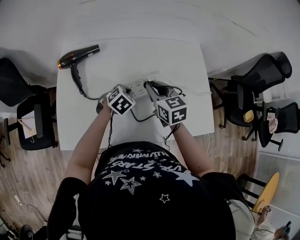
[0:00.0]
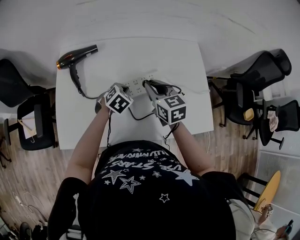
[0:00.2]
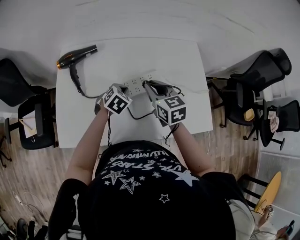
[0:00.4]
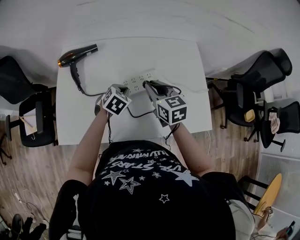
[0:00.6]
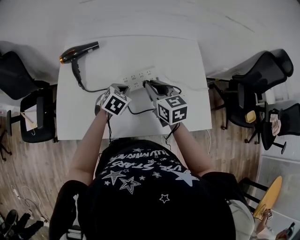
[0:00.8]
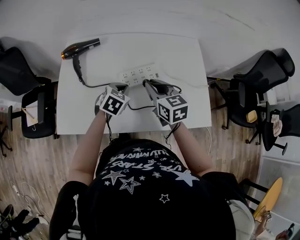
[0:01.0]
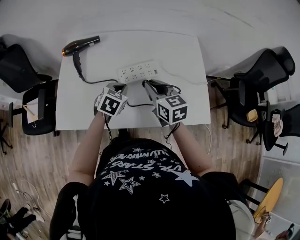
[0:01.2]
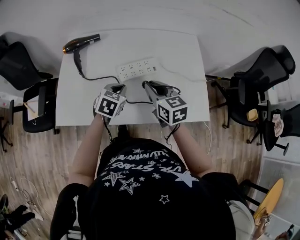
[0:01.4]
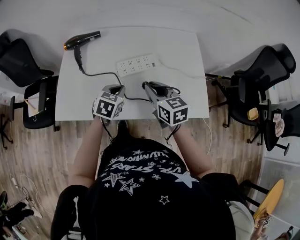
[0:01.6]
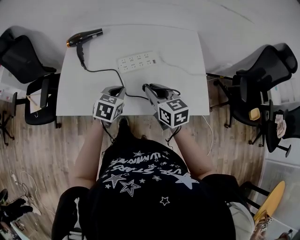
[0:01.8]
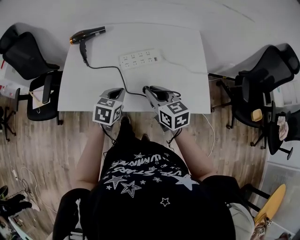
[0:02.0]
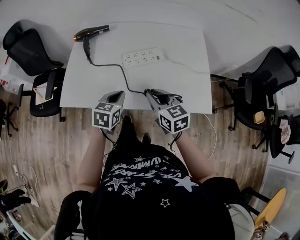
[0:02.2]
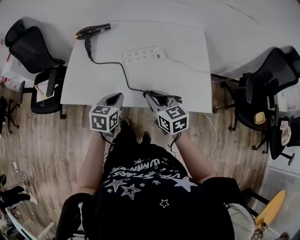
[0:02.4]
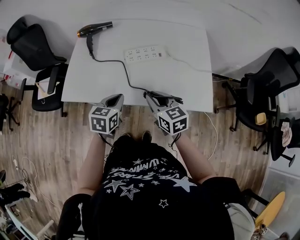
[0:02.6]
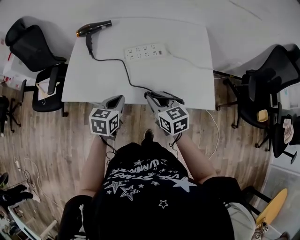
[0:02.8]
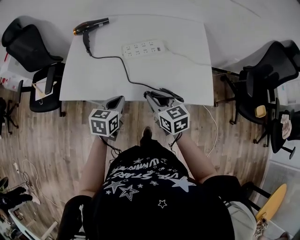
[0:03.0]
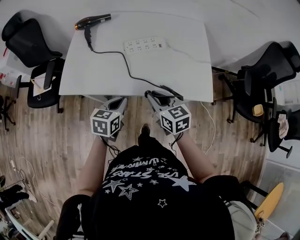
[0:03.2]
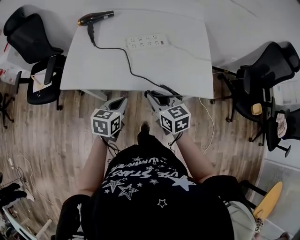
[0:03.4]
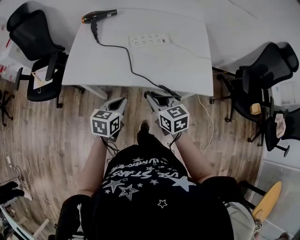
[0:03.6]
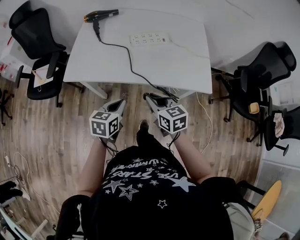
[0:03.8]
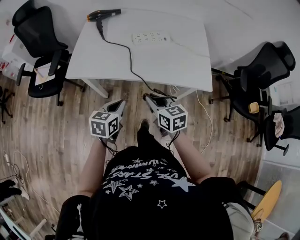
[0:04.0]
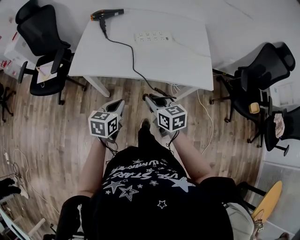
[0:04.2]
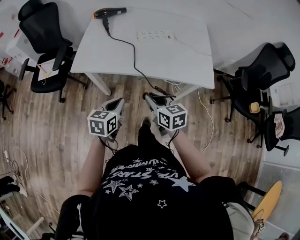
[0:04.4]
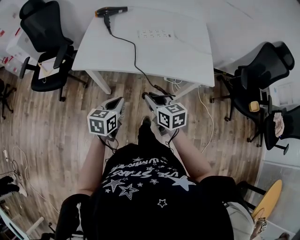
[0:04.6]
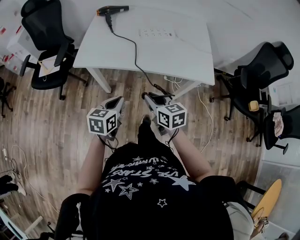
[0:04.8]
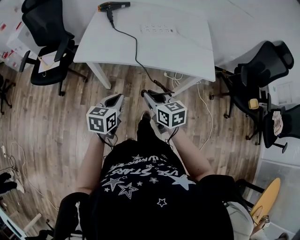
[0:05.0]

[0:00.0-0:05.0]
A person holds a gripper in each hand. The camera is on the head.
0:00.0 to 0:01.6: The left gripper goes roughly 15 cm backward and upward, and rotates approximately 30 degrees, while the right gripper shifts roughly 15 cm backward and to the right.
0:01.6 to 0:03.4: Both grippers move backward, about 20 cm. The left gripper turns by some 20 degrees.
0:03.4 to 0:05.0: The grippers both shift backward and to the left by about 15 cm.

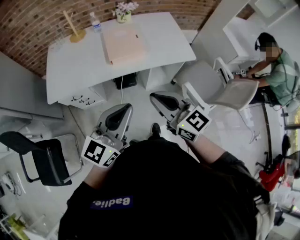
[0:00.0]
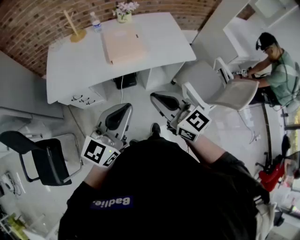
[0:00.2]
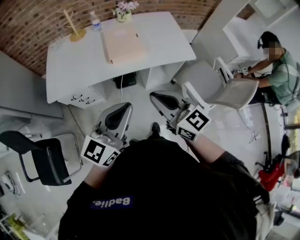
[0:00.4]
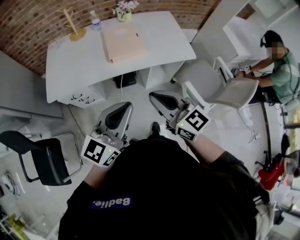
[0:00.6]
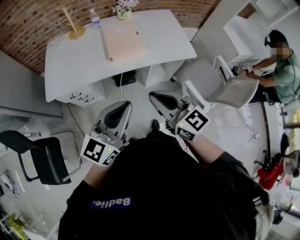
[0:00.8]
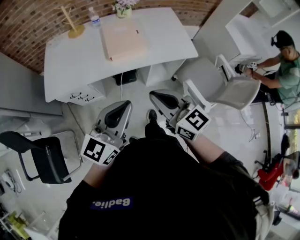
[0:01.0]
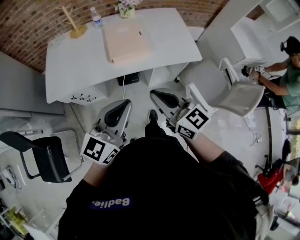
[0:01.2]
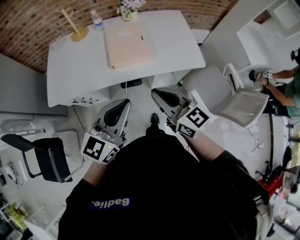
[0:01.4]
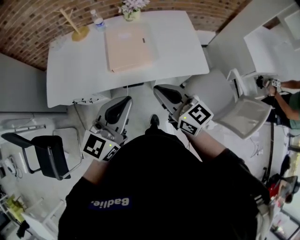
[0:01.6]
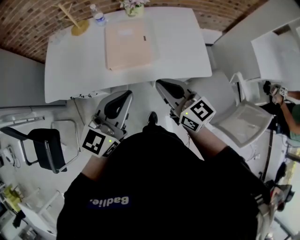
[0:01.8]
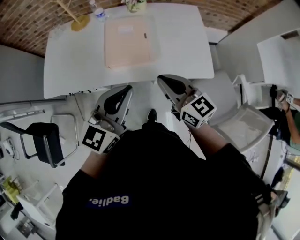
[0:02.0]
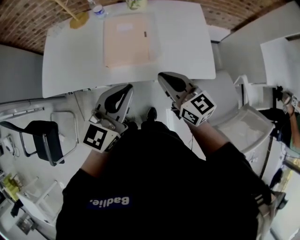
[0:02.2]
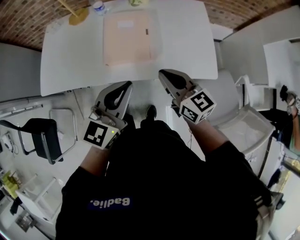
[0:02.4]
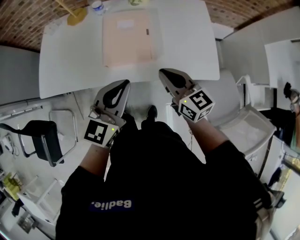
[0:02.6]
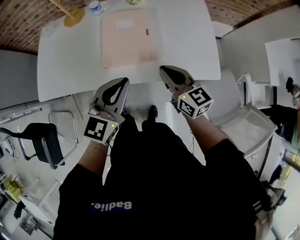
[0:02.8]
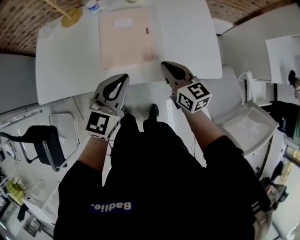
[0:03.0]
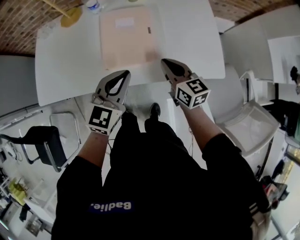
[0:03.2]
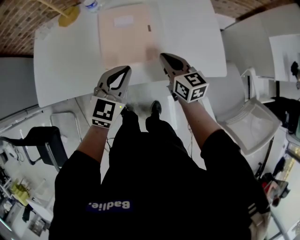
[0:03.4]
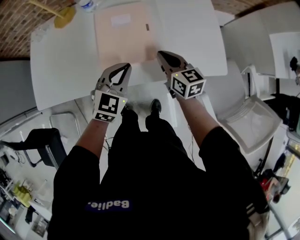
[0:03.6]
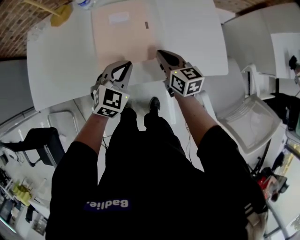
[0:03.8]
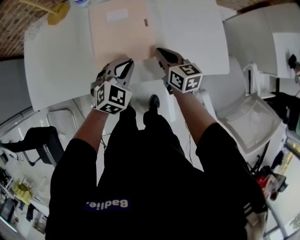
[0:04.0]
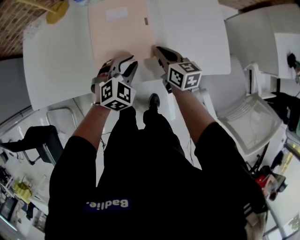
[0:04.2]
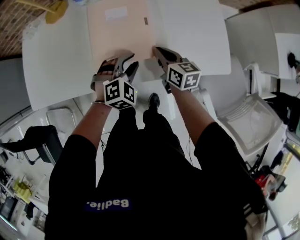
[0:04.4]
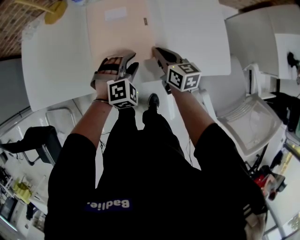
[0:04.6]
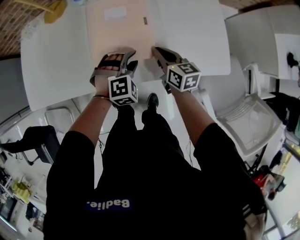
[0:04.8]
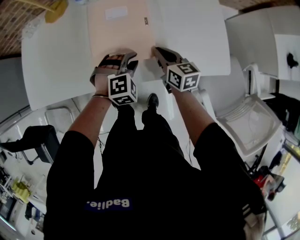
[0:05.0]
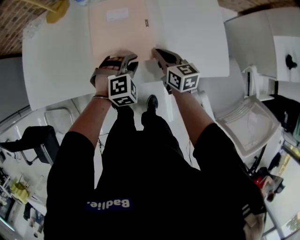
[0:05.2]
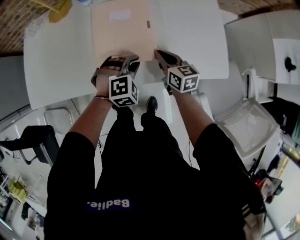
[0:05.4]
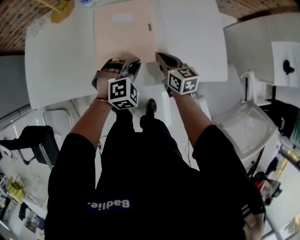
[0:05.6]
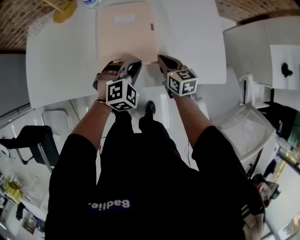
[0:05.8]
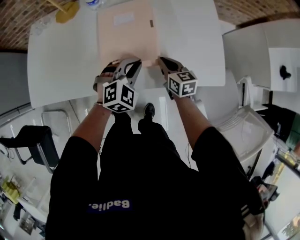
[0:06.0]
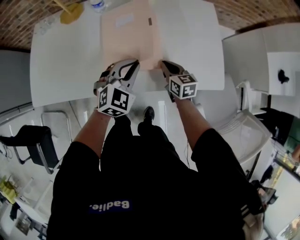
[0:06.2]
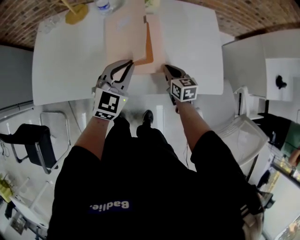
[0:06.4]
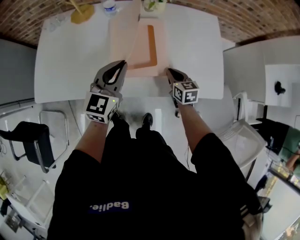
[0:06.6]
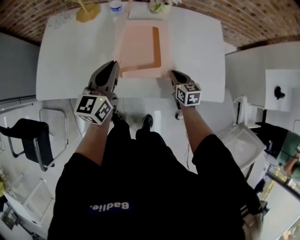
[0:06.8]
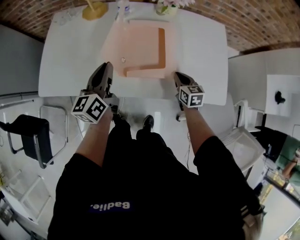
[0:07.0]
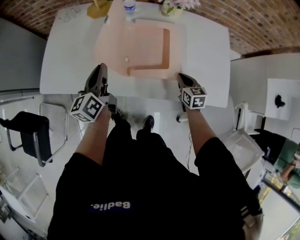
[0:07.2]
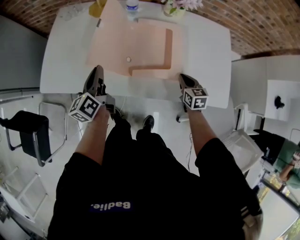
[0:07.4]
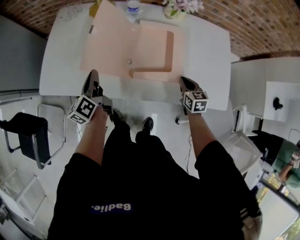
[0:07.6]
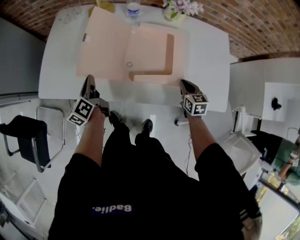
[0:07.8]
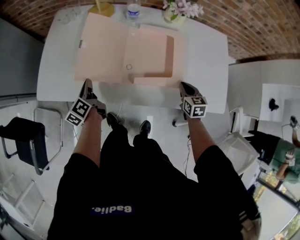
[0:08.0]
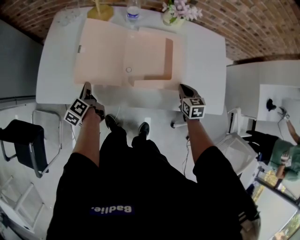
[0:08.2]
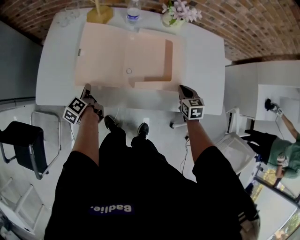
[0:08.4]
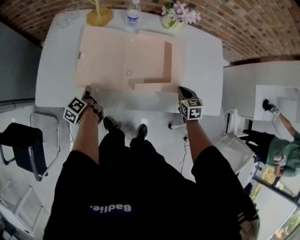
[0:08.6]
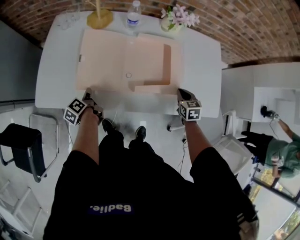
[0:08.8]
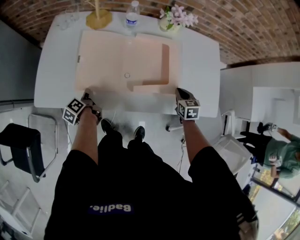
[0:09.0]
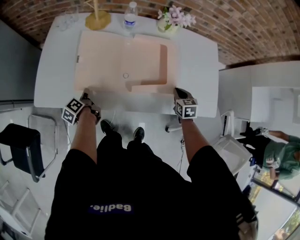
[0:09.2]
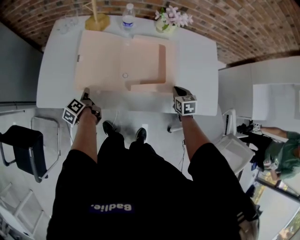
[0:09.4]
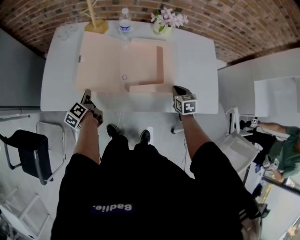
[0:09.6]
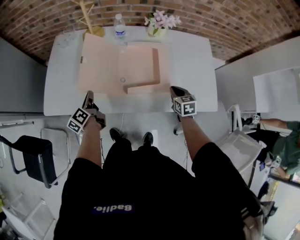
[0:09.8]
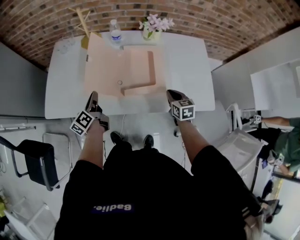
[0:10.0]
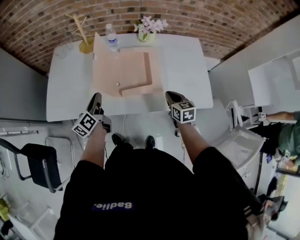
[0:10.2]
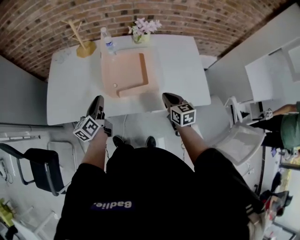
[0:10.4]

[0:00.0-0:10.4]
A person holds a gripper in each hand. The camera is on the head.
0:00.0 to 0:01.4: The two grippers go roughly 10 cm forward.
0:01.4 to 0:03.0: The right gripper heads forward, downward and to the right, covering roughly 30 cm. Meanwhile the left gripper goes approximately 25 cm forward and downward, and turns by about 20 degrees.
0:03.0 to 0:04.4: The left gripper shifts some 20 cm downward, tilts its fingers roughly 30 degrees downward, and opens its fingers, while the right gripper goes roughly 15 cm downward and forward.
0:04.4 to 0:06.0: The left gripper is displaced upward by about 5 cm, and closes its fingers.
0:06.0 to 0:07.4: The left gripper moves to the left, about 30 cm, and rolls counterclockwise, seen from behind, by approximately 80 degrees.
0:07.4 to 0:09.0: The left gripper goes about 20 cm downward and to the left, and turns by some 40 degrees.
0:09.0 to 0:10.4: The left gripper heads upward and to the right, covering some 25 cm, and changes its angle by about 40 degrees. Meanwhile the right gripper travels upward and backward by roughly 15 cm, and changes its angle by about 20 degrees.

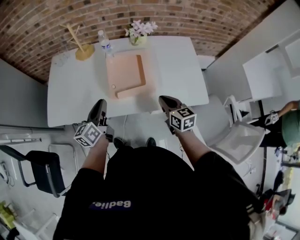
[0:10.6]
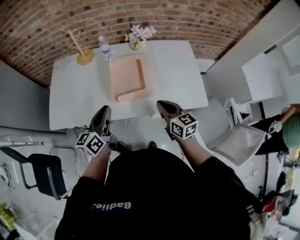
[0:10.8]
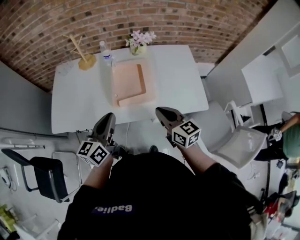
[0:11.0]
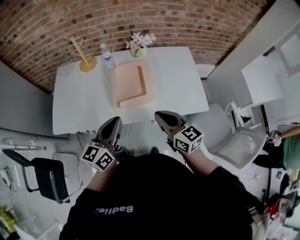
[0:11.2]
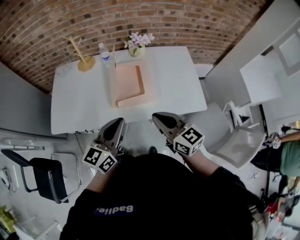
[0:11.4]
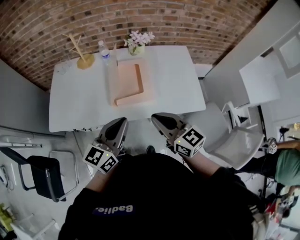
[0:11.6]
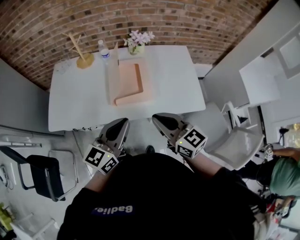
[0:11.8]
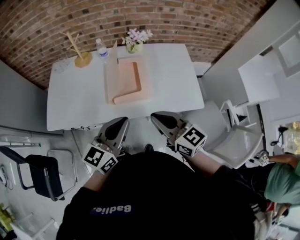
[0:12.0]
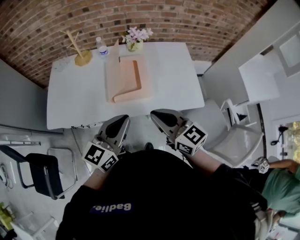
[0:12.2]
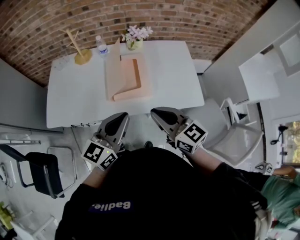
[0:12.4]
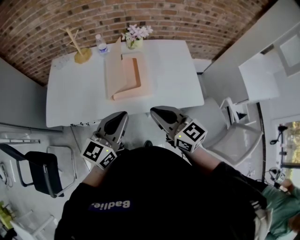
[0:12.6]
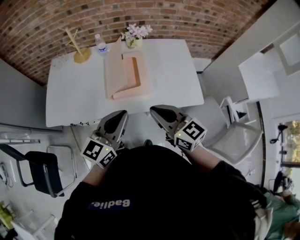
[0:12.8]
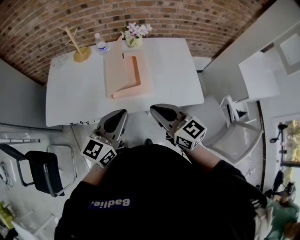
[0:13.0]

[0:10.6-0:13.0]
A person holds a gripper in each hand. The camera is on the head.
0:10.6 to 0:11.8: The right gripper shifts approximately 20 cm upward and backward, and turns by some 20 degrees; the left gripper is displaced upward, to the right and backward by about 20 cm, and swivels about 30 degrees.
0:11.8 to 0:13.0: Both grippers stay about where they are.

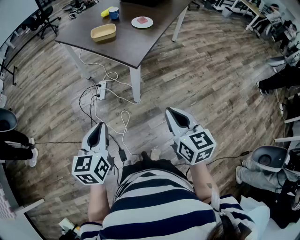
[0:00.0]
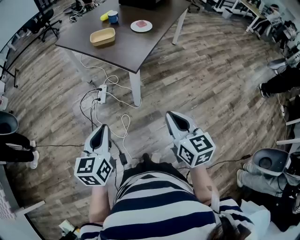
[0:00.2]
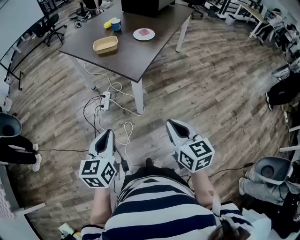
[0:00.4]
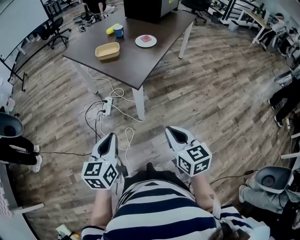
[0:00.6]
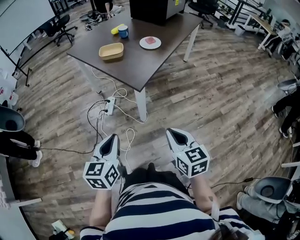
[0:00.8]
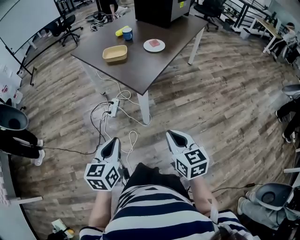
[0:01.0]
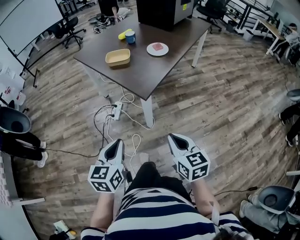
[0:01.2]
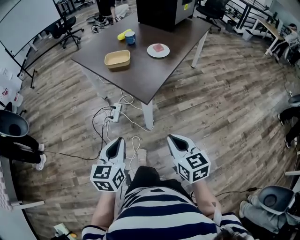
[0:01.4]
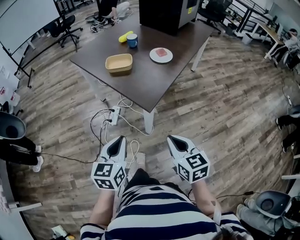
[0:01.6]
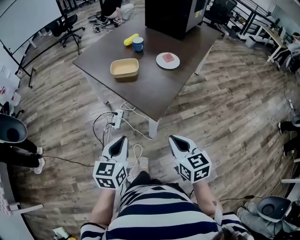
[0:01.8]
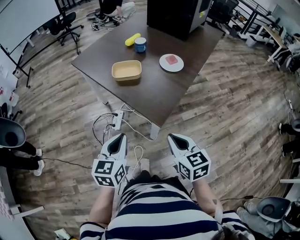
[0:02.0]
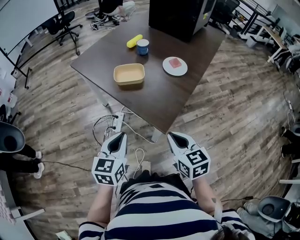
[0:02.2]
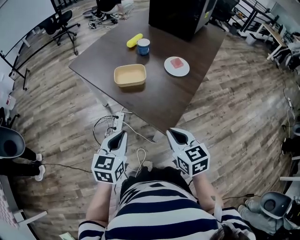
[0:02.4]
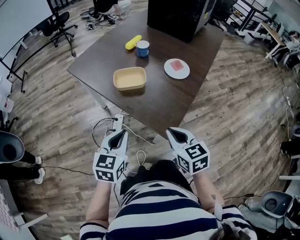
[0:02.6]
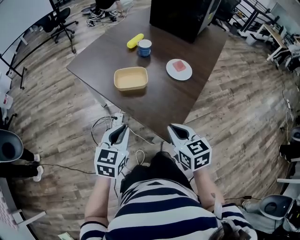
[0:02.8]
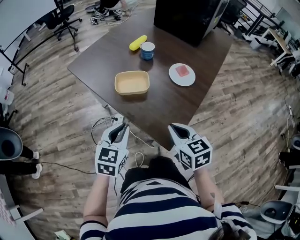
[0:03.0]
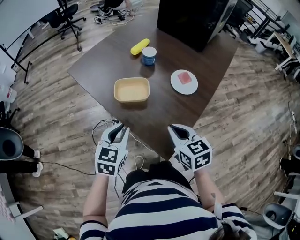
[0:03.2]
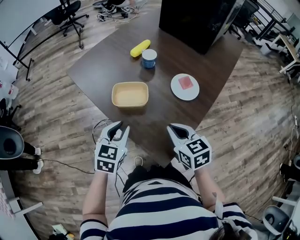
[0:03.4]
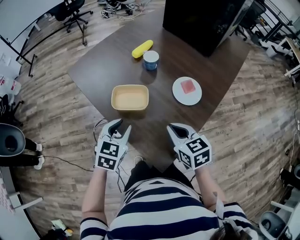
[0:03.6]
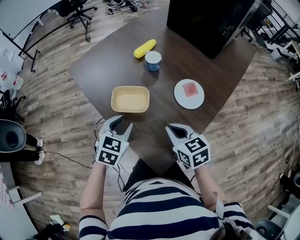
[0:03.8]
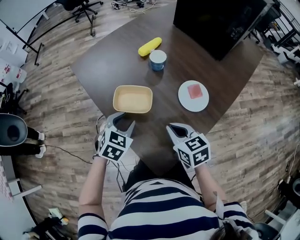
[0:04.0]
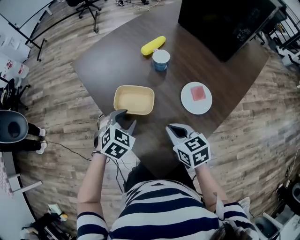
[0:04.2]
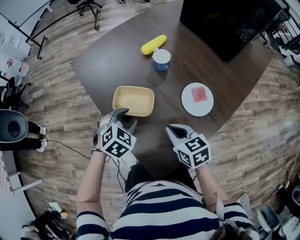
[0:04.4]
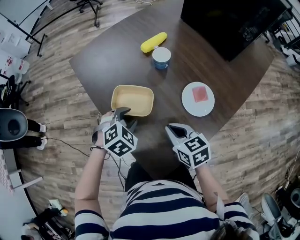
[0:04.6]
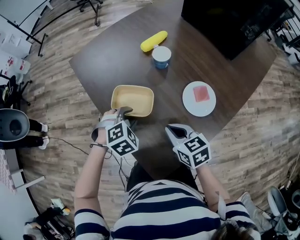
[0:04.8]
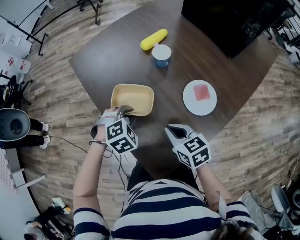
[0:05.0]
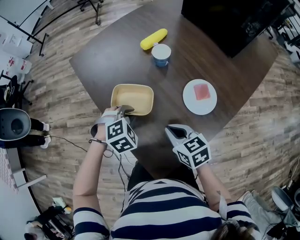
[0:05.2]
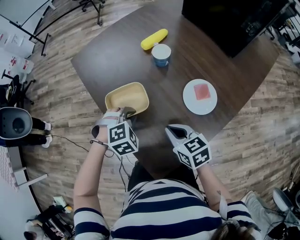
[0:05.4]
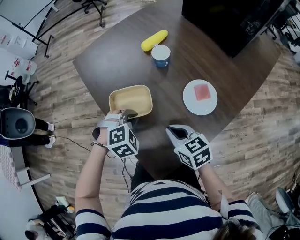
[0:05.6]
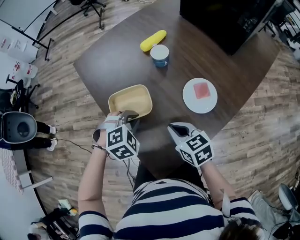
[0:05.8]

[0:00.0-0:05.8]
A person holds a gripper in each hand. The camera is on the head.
0:00.0 to 0:01.4: The right gripper moves forward, some 10 cm. The left gripper is displaced forward and to the right by approximately 15 cm.
0:01.4 to 0:02.8: The two grippers go roughly 35 cm forward.
0:02.8 to 0:04.4: Both grippers travel together forward, approximately 25 cm. The right gripper swivels some 20 degrees, while the left gripper changes its angle by approximately 40 degrees.
0:04.4 to 0:05.8: The left gripper changes its angle by some 20 degrees.
